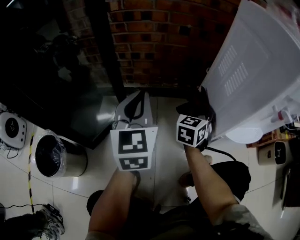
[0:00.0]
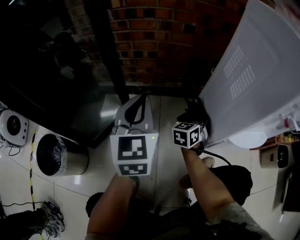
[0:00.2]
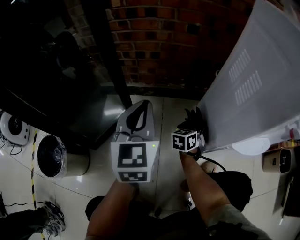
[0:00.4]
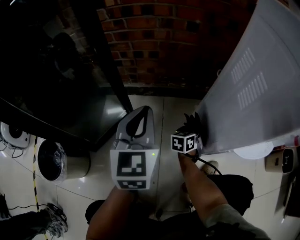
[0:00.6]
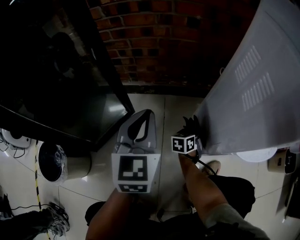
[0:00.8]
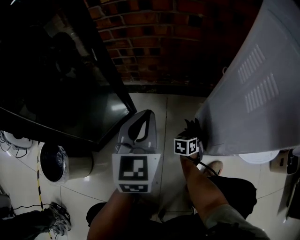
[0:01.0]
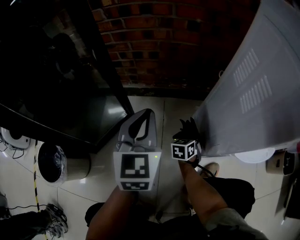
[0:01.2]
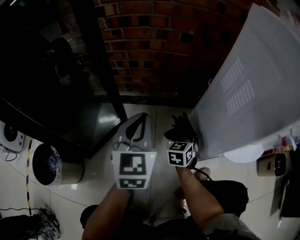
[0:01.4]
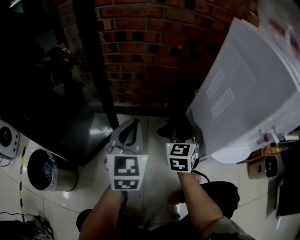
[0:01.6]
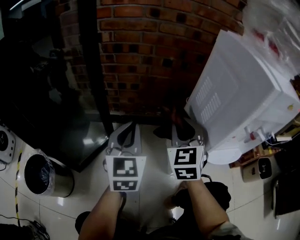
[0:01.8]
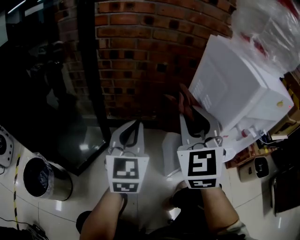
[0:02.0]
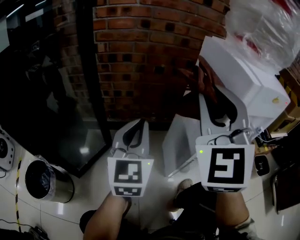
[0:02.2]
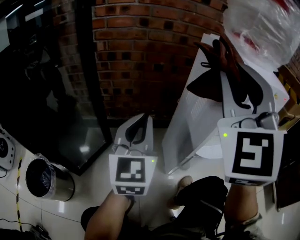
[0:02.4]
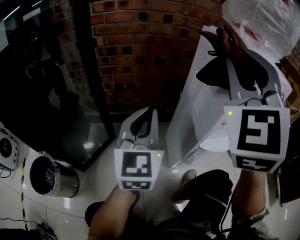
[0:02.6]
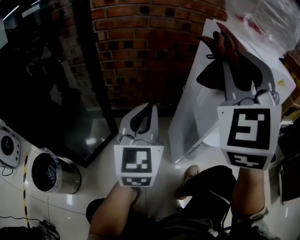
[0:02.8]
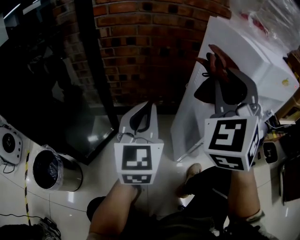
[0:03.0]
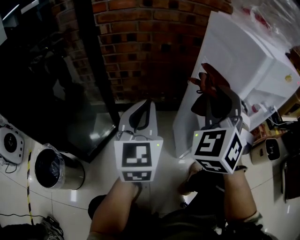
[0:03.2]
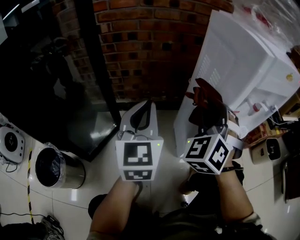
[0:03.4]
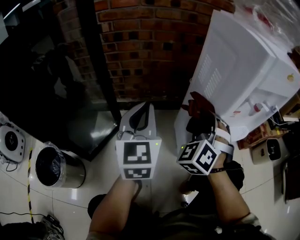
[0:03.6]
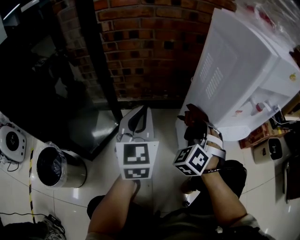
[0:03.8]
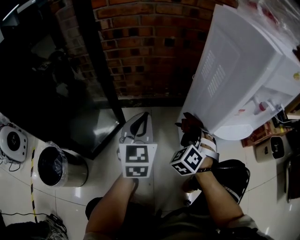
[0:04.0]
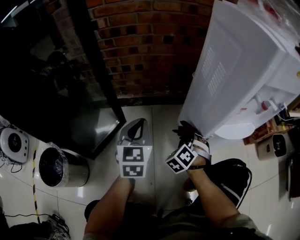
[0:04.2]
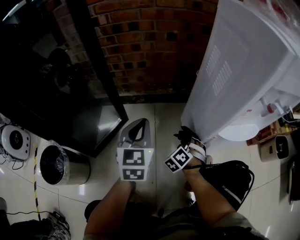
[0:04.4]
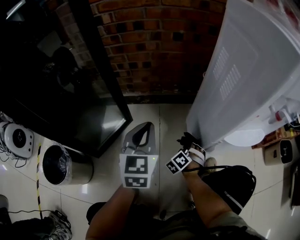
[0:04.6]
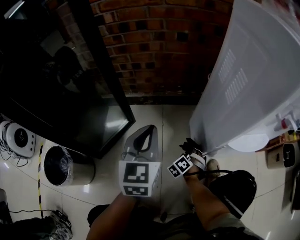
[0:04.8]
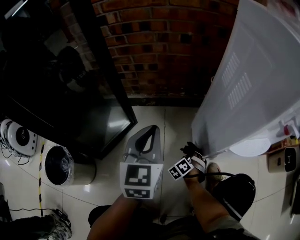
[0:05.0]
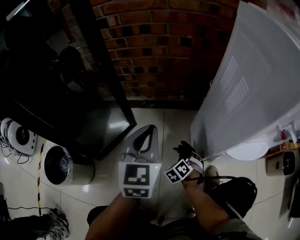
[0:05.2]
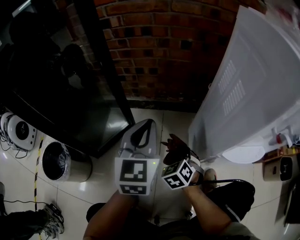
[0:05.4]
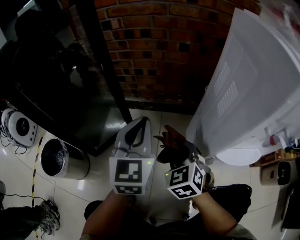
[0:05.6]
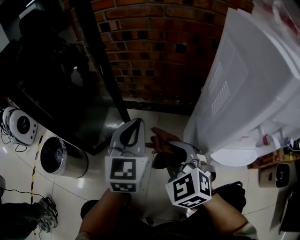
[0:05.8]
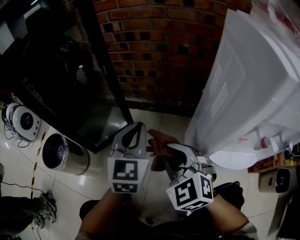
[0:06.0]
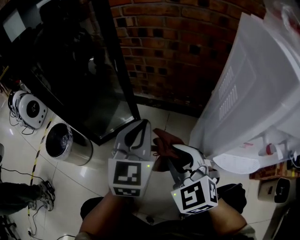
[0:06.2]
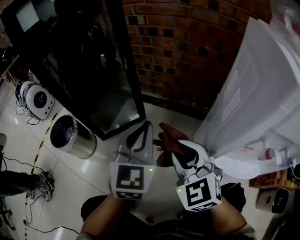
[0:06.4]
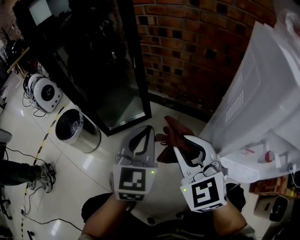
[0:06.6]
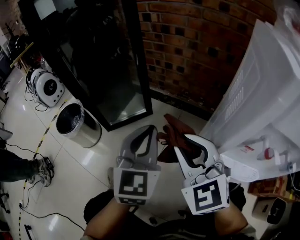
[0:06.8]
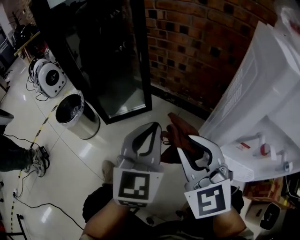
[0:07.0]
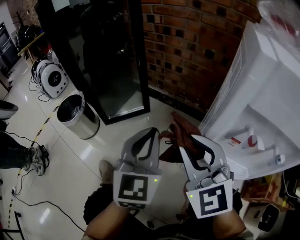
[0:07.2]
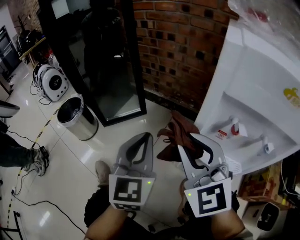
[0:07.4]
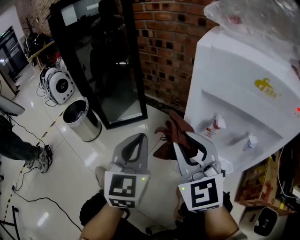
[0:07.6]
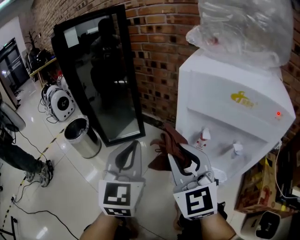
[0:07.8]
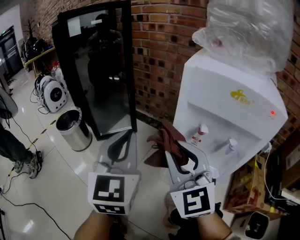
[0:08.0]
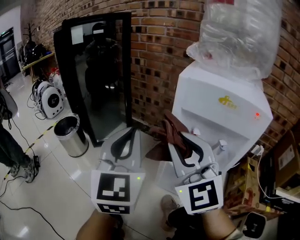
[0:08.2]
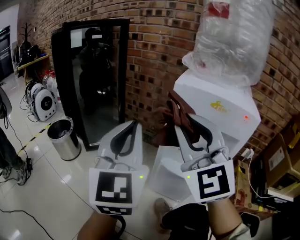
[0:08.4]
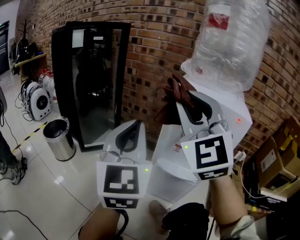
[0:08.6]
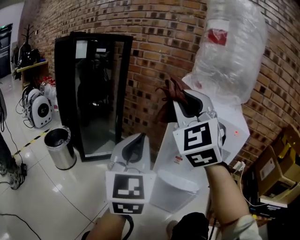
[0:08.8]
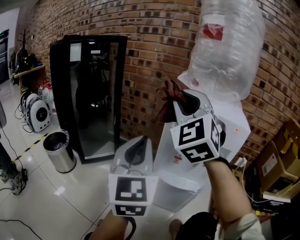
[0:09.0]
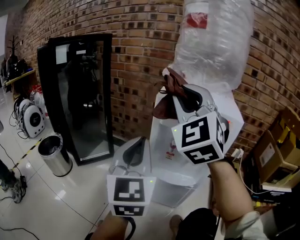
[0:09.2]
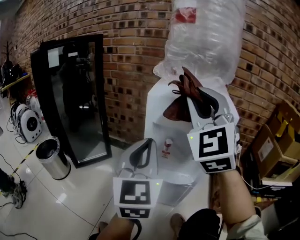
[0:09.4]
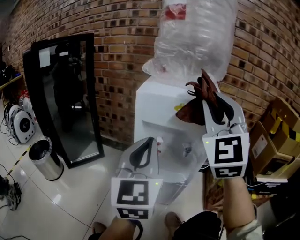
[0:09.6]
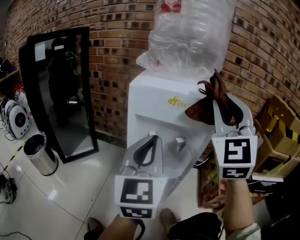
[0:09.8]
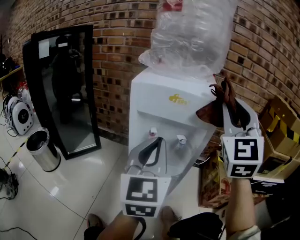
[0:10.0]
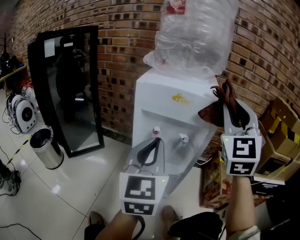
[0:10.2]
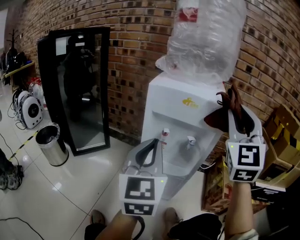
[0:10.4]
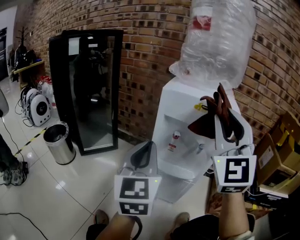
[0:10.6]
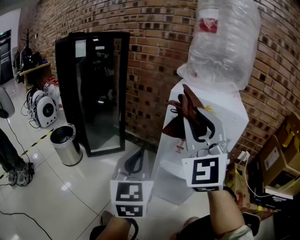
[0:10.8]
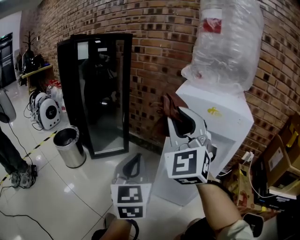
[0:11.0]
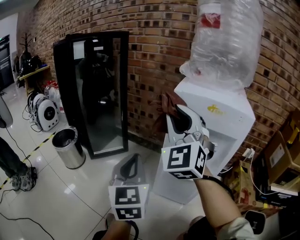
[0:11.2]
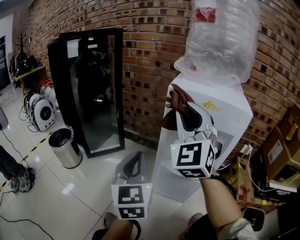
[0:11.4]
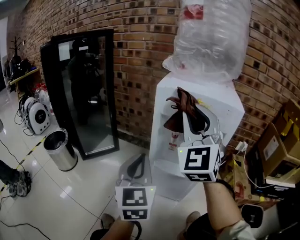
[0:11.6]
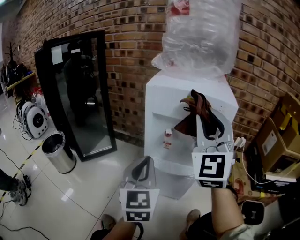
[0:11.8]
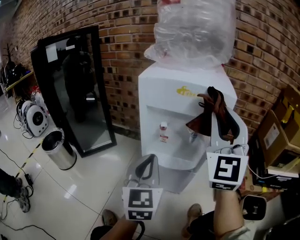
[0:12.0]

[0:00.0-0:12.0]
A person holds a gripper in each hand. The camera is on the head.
0:00.0 to 0:01.6: The right gripper goes downward and returns, roughly 25 cm each way.
0:01.6 to 0:03.0: The right gripper goes about 30 cm upward, and changes its angle by about 40 degrees; the left gripper is displaced upward and to the right by some 10 cm.
0:03.0 to 0:04.4: The right gripper moves downward, some 50 cm, and tips its fingers downward by about 40 degrees, while the left gripper moves downward, approximately 15 cm.
0:04.4 to 0:06.0: The left gripper is displaced upward by about 5 cm, while the right gripper shifts about 25 cm upward, and rotates roughly 60 degrees.
0:06.0 to 0:07.6: The left gripper moves backward, some 20 cm, and turns by approximately 20 degrees. The right gripper is displaced upward, backward and to the right by approximately 20 cm, and changes its angle by roughly 30 degrees.
0:07.6 to 0:09.0: Both grippers travel together upward, approximately 20 cm. The right gripper turns by roughly 40 degrees.
0:09.0 to 0:10.4: The right gripper is displaced to the right by approximately 25 cm, and rotates some 20 degrees. The left gripper travels to the right by roughly 10 cm.
0:10.4 to 0:12.0: The right gripper goes approximately 5 cm downward, and moves some 25 cm to the left and comes back; the left gripper is displaced downward by some 10 cm, and reaches approximately 15 cm to the left, then returns.

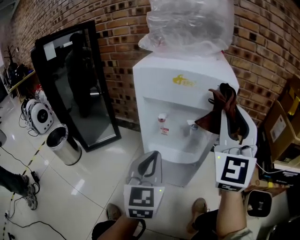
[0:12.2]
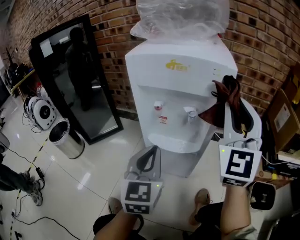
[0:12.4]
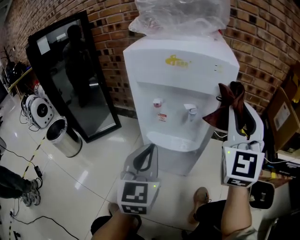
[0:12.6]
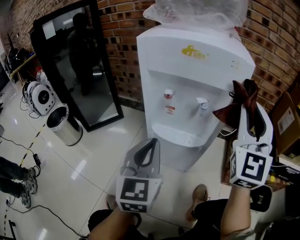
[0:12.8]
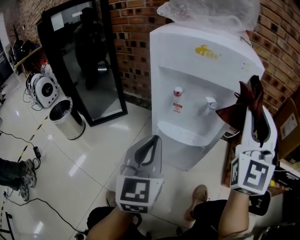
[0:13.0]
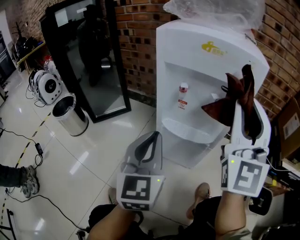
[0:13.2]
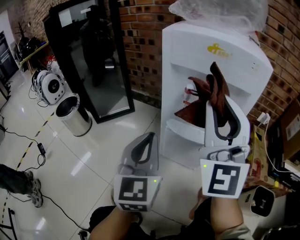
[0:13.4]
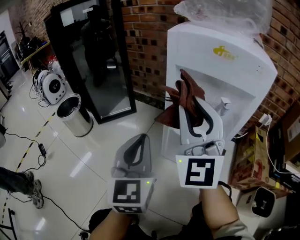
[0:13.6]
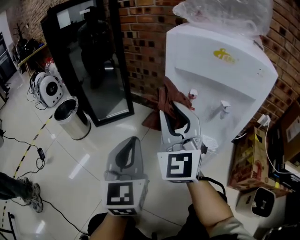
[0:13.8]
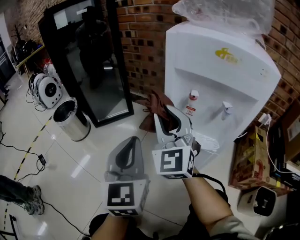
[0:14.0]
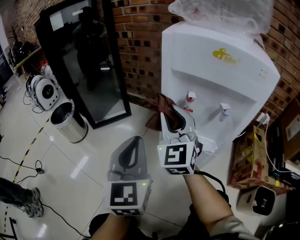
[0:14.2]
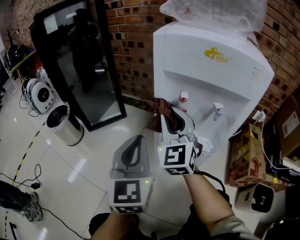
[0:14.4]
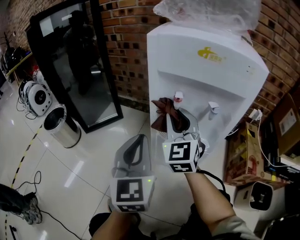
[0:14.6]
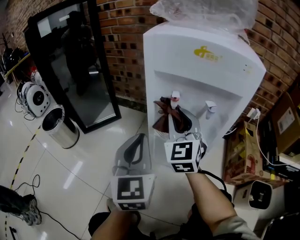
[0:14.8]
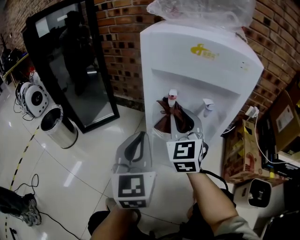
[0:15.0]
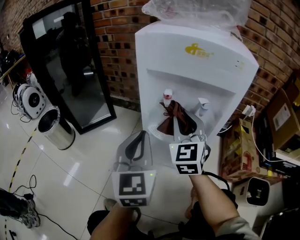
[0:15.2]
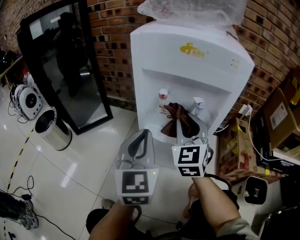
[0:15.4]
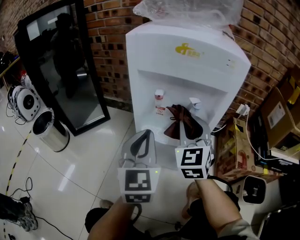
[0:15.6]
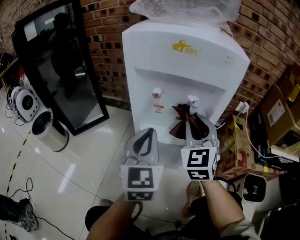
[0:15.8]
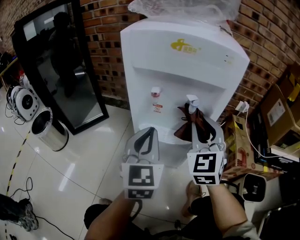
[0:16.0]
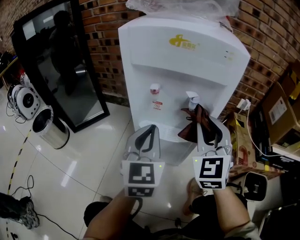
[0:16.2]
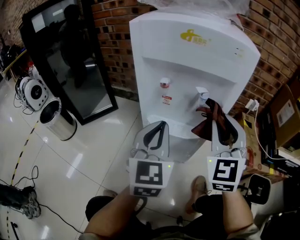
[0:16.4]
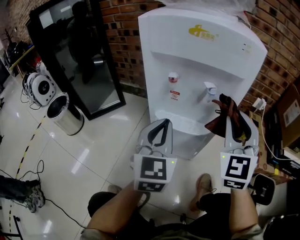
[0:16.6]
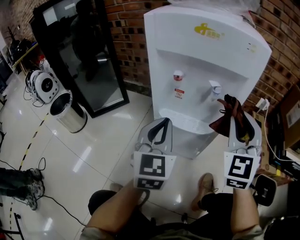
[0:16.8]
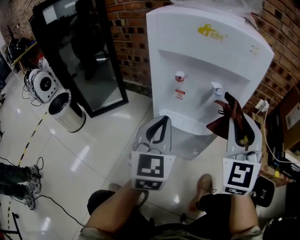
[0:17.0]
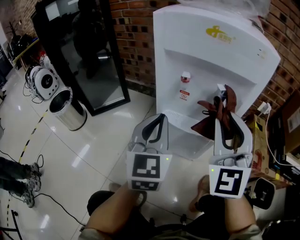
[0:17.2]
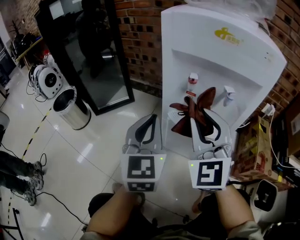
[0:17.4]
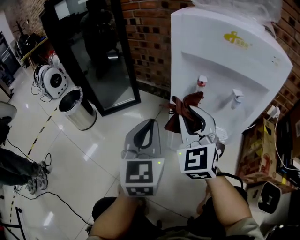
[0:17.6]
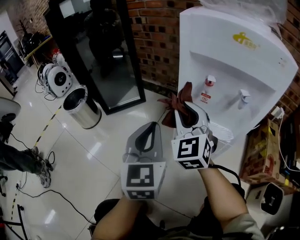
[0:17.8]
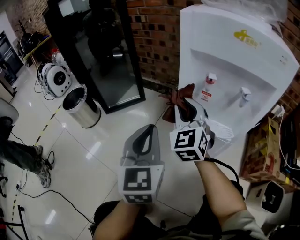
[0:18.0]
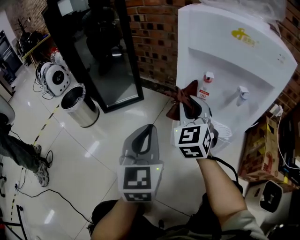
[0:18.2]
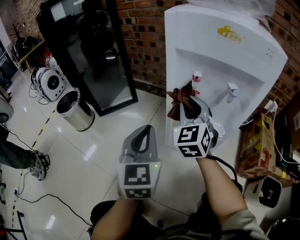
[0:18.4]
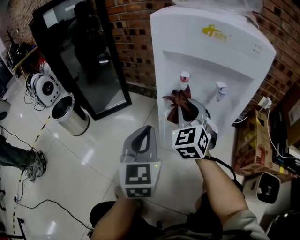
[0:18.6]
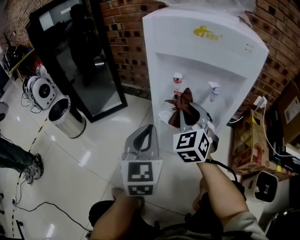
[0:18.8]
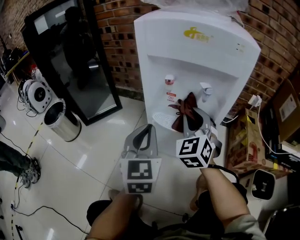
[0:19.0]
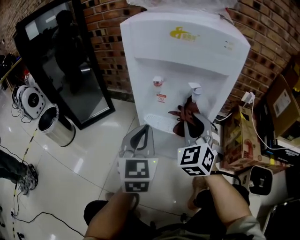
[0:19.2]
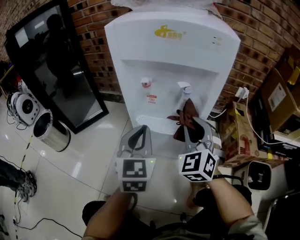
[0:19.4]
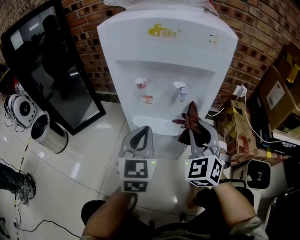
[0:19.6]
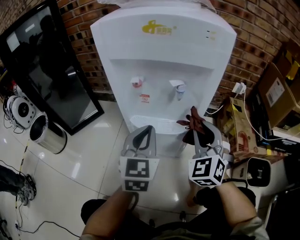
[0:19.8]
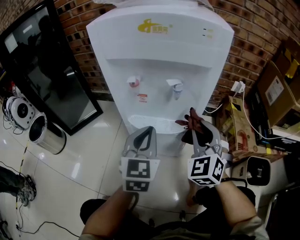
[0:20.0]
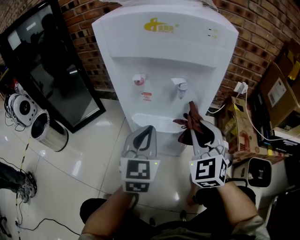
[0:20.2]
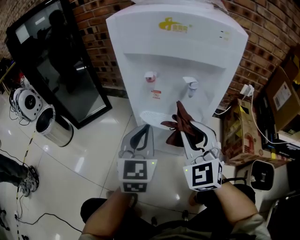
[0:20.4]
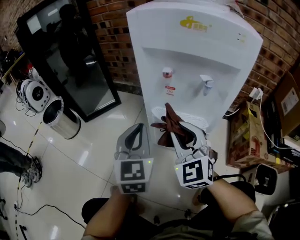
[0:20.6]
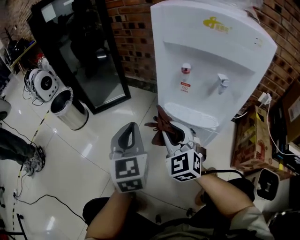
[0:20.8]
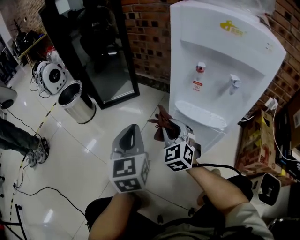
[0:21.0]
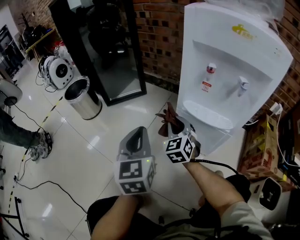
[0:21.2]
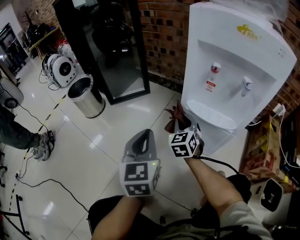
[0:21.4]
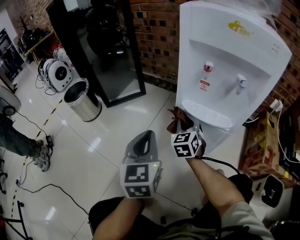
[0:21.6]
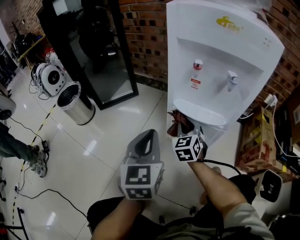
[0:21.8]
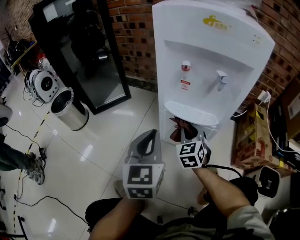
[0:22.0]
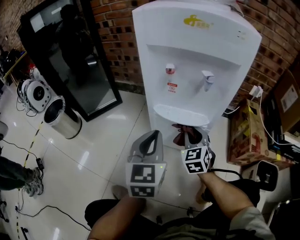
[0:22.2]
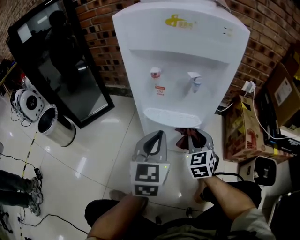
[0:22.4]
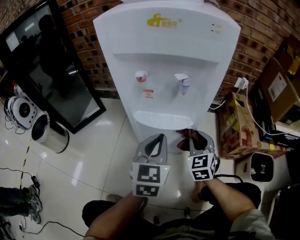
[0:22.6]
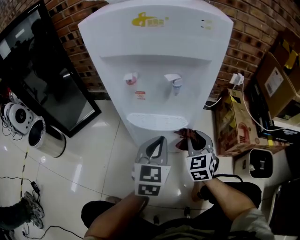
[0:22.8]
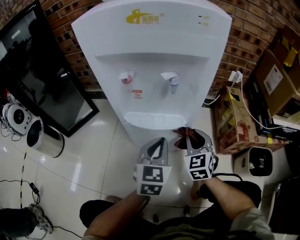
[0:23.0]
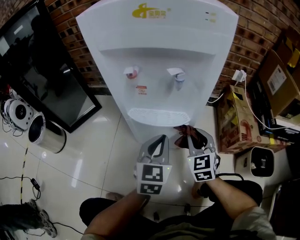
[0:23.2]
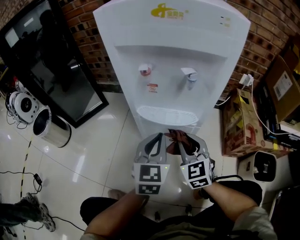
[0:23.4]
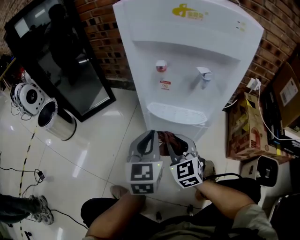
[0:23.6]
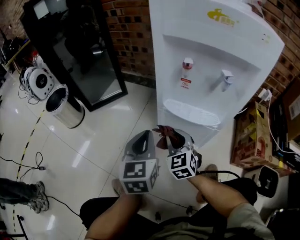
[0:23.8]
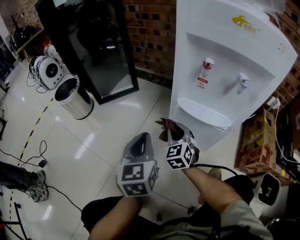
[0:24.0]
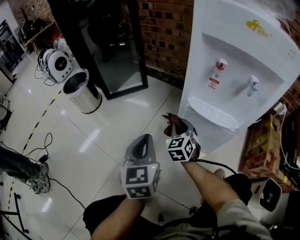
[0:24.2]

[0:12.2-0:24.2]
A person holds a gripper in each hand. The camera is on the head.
0:12.2 to 0:13.8: The left gripper shifts some 15 cm to the left. The right gripper goes some 25 cm to the left and downward, and turns by about 30 degrees.
0:13.8 to 0:15.2: The right gripper shifts roughly 15 cm to the right and downward, and turns by roughly 20 degrees. Meanwhile the left gripper shifts approximately 10 cm to the right.
0:15.2 to 0:16.6: The right gripper heads to the right and backward, covering roughly 15 cm. The left gripper moves to the right, approximately 5 cm.
0:16.6 to 0:18.2: The left gripper shifts some 15 cm to the left. The right gripper goes about 25 cm to the left and forward.
0:18.2 to 0:19.8: Both grippers move to the right, approximately 20 cm. The right gripper swivels approximately 20 degrees. Meanwhile the left gripper swivels about 20 degrees.
0:19.8 to 0:21.2: The right gripper moves about 30 cm, and changes its angle by approximately 30 degrees; the left gripper ends up approximately 20 cm from where it was, and turns by about 30 degrees.
0:21.2 to 0:22.6: The left gripper moves roughly 25 cm, and rotates some 40 degrees. Meanwhile the right gripper moves some 25 cm, and swivels approximately 20 degrees.
0:22.6 to 0:24.2: The left gripper moves approximately 20 cm, and swivels about 40 degrees; the right gripper ends up about 25 cm from where it was.
